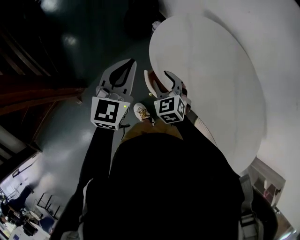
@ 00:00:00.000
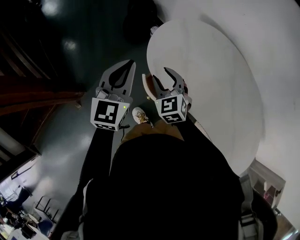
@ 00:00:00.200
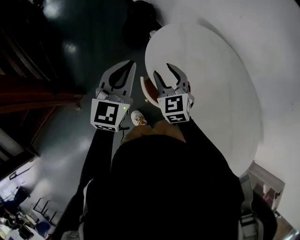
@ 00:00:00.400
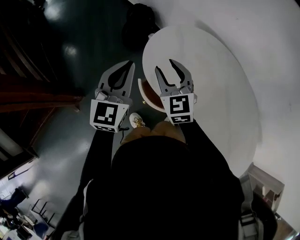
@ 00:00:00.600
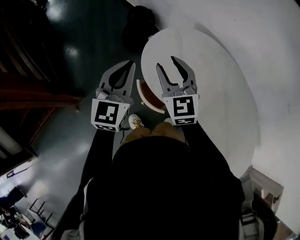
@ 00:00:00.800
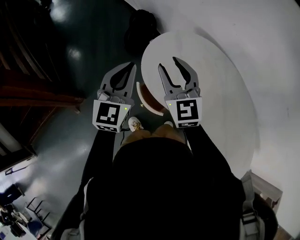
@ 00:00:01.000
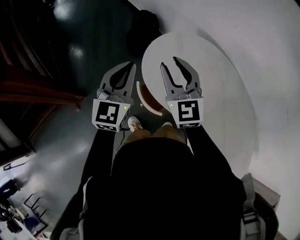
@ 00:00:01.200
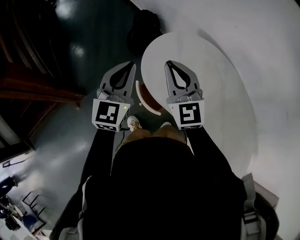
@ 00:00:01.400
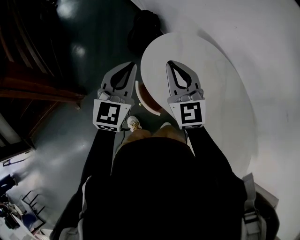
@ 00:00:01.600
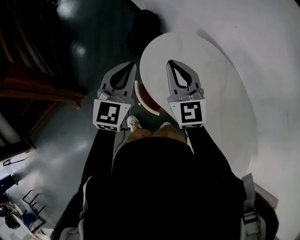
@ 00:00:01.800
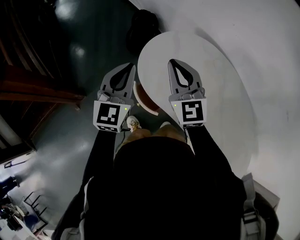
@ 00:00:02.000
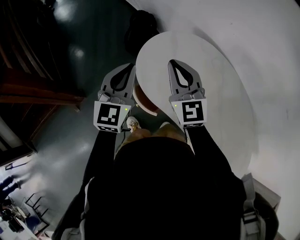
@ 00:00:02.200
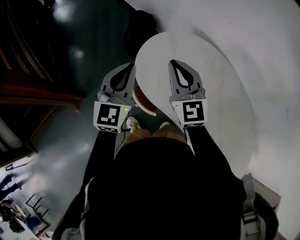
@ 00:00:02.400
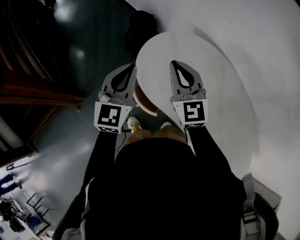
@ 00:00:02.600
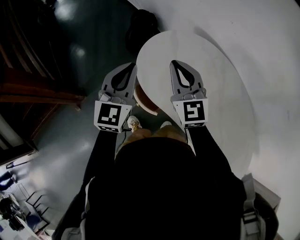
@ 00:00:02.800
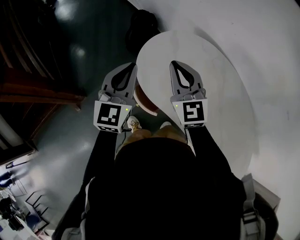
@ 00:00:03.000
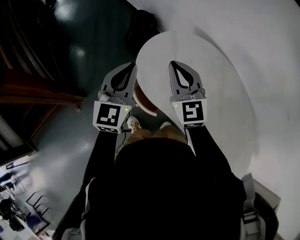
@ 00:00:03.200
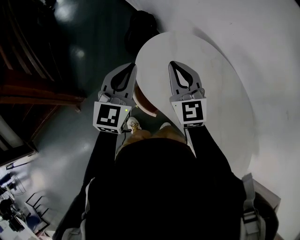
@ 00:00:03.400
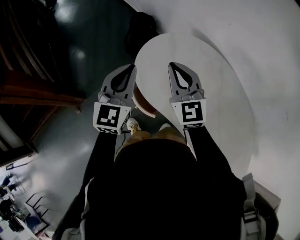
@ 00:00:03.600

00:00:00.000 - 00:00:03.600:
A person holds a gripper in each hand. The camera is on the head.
00:00:00.000 - 00:00:01.800: The left gripper is displaced upward by about 5 cm; the right gripper shifts about 20 cm upward, angles its fingers upward, by approximately 30 degrees, and closes.
00:00:01.800 - 00:00:03.600: The grippers make only small movements.

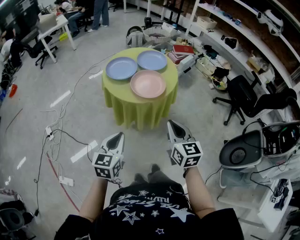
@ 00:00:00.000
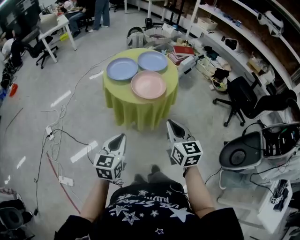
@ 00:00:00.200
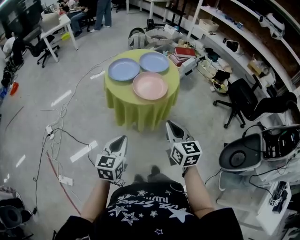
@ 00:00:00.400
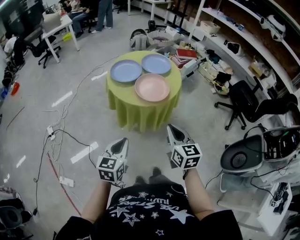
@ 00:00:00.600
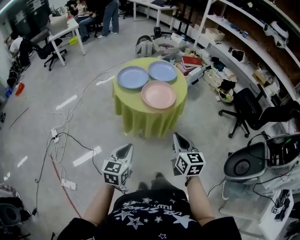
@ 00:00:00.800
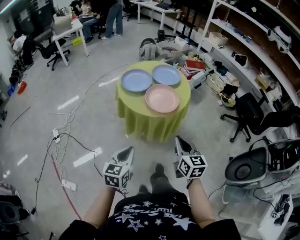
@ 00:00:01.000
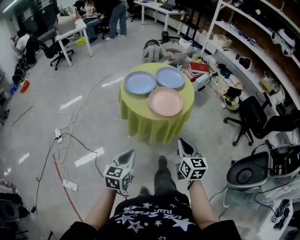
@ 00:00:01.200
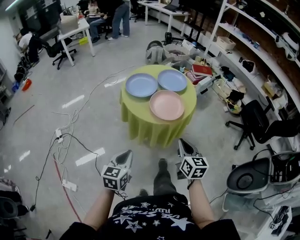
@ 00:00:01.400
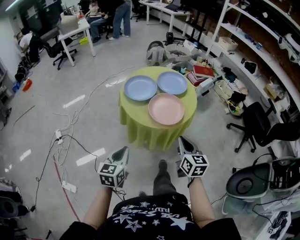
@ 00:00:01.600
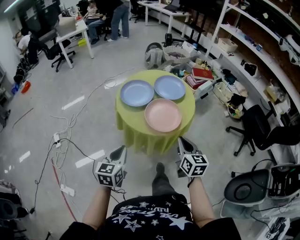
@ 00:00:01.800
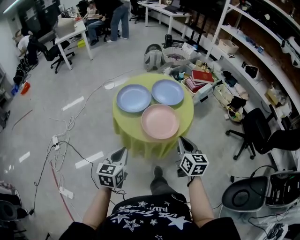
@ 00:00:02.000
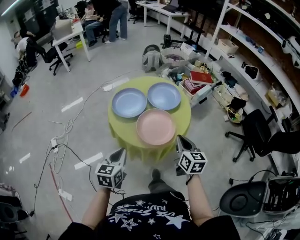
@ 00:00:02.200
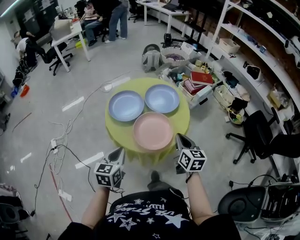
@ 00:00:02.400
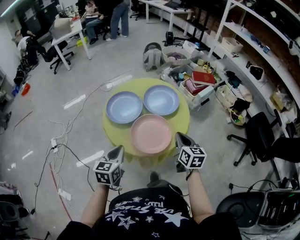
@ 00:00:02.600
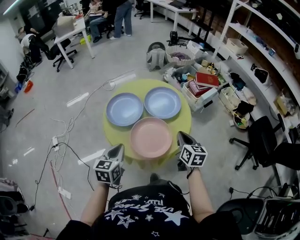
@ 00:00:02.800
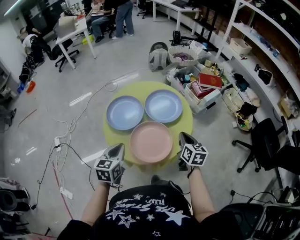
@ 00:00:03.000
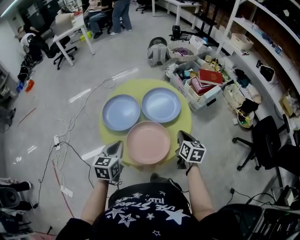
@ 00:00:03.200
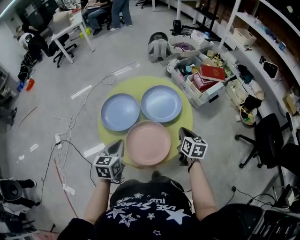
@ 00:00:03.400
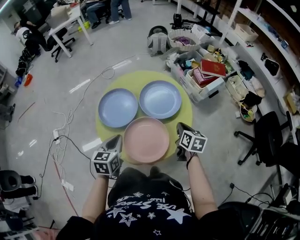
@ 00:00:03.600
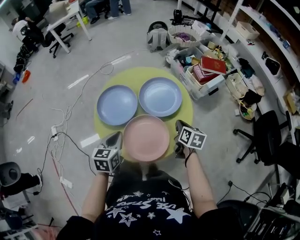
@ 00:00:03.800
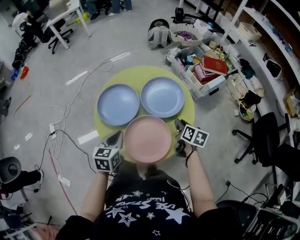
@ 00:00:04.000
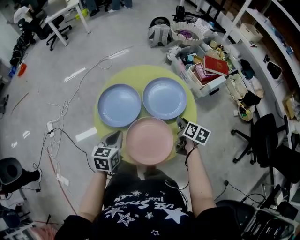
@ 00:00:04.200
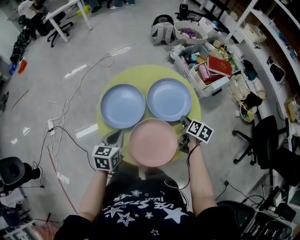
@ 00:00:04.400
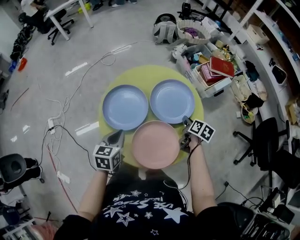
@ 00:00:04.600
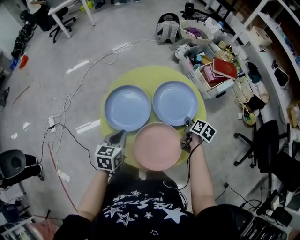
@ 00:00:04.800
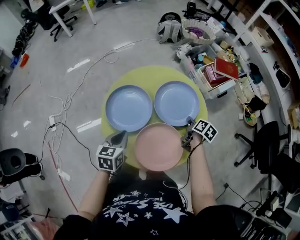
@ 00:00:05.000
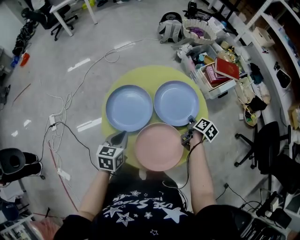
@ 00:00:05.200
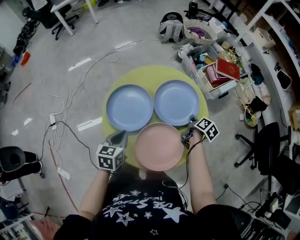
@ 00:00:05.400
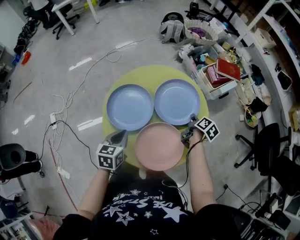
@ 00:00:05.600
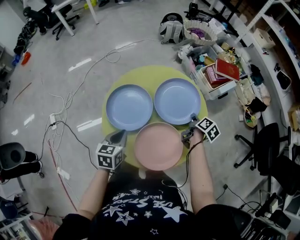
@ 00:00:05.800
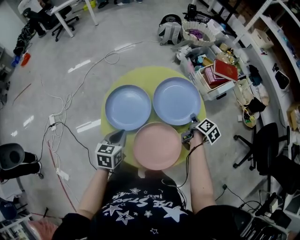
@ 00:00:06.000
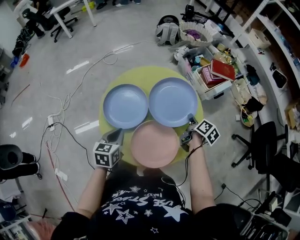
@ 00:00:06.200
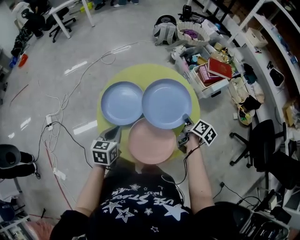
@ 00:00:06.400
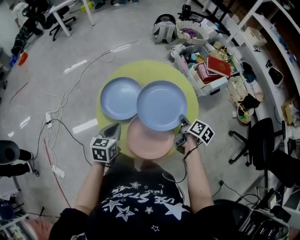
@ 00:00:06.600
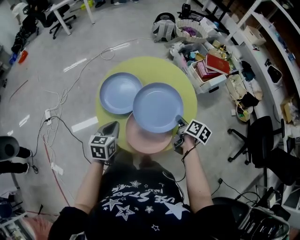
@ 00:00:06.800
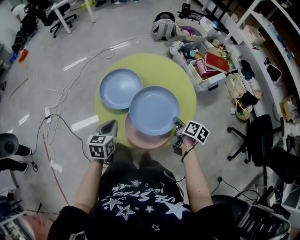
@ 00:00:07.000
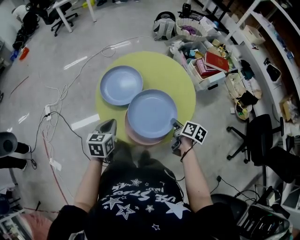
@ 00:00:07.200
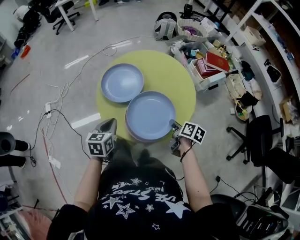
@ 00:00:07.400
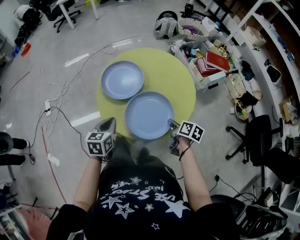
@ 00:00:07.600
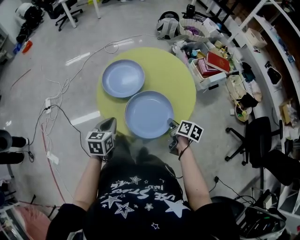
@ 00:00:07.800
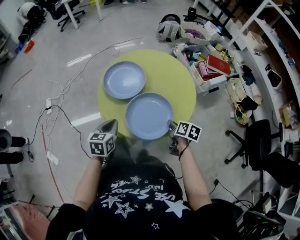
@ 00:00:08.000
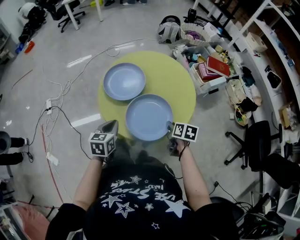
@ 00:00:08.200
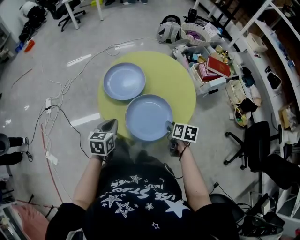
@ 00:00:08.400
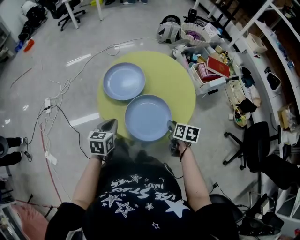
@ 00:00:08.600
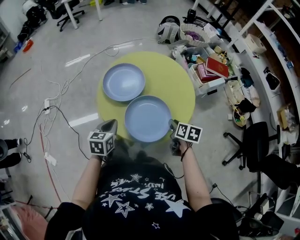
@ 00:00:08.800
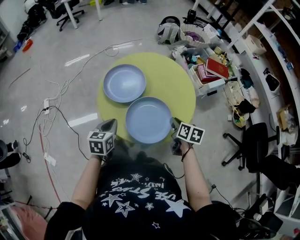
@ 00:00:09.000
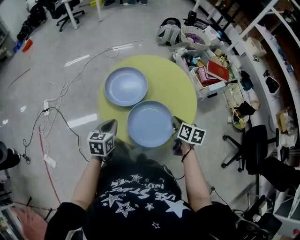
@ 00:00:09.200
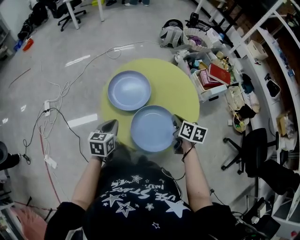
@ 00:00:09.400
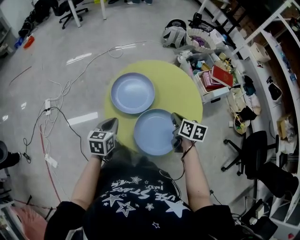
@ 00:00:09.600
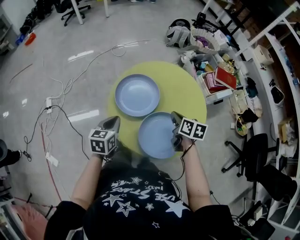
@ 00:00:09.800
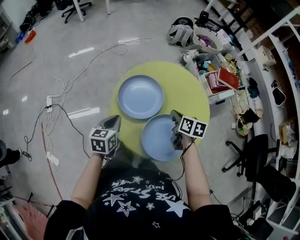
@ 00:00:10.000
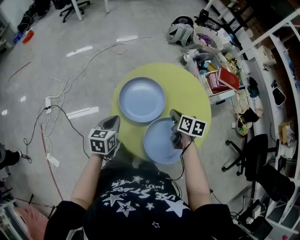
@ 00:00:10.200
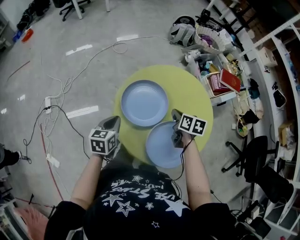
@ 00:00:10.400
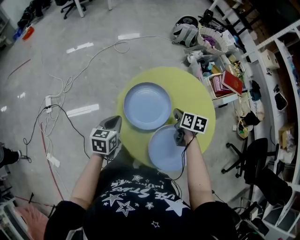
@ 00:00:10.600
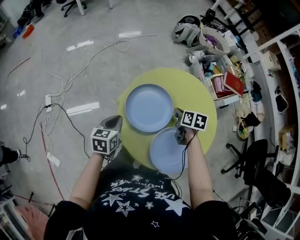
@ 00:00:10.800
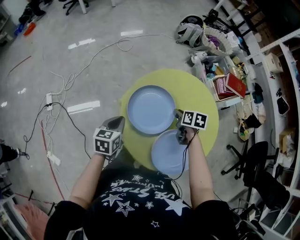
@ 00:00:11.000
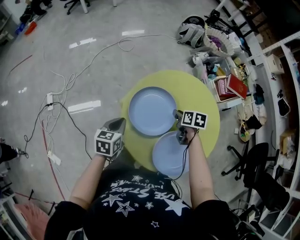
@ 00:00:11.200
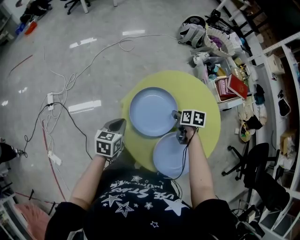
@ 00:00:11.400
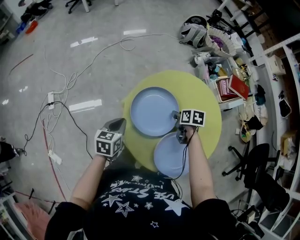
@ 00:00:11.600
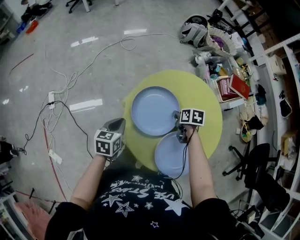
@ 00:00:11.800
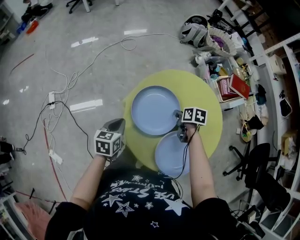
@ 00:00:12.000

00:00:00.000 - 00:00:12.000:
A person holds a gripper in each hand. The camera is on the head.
00:00:00.000 - 00:00:01.600: The left gripper shifts approximately 10 cm forward and to the left. The right gripper goes about 10 cm forward and downward.
00:00:01.600 - 00:00:03.000: The right gripper travels forward and to the right by some 30 cm, while the left gripper heads forward, covering roughly 25 cm.
00:00:03.000 - 00:00:04.400: Both grippers travel together forward and downward, about 15 cm. The right gripper turns by some 30 degrees, and opens up.
00:00:04.400 - 00:00:06.000: The right gripper closes up.
00:00:06.000 - 00:00:07.600: The left gripper travels backward by roughly 10 cm. The right gripper travels backward and to the left by roughly 20 cm, and swivels roughly 30 degrees.
00:00:09.000 - 00:00:10.400: Both grippers travel together forward and to the left, approximately 20 cm.
00:00:10.400 - 00:00:12.000: The right gripper goes some 5 cm downward.

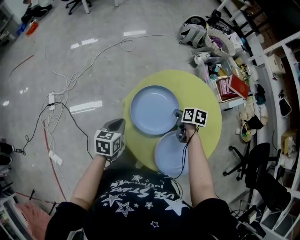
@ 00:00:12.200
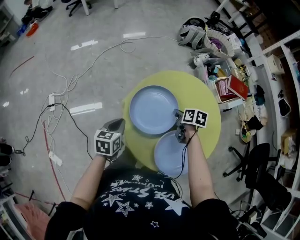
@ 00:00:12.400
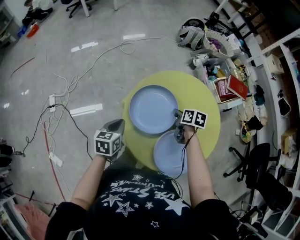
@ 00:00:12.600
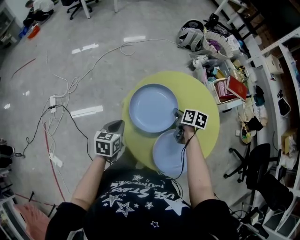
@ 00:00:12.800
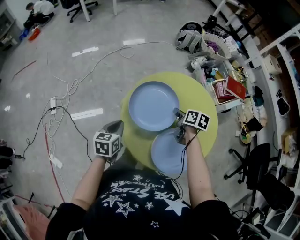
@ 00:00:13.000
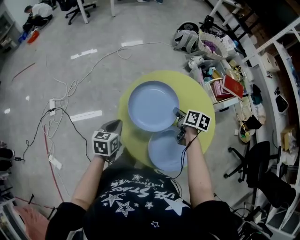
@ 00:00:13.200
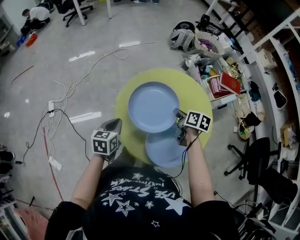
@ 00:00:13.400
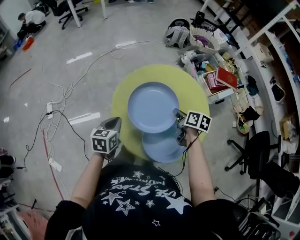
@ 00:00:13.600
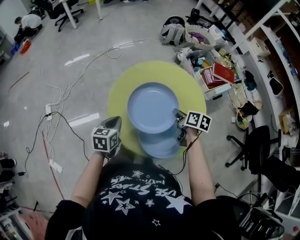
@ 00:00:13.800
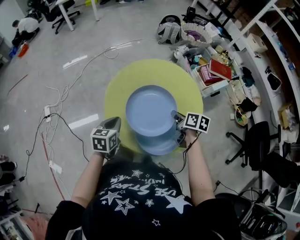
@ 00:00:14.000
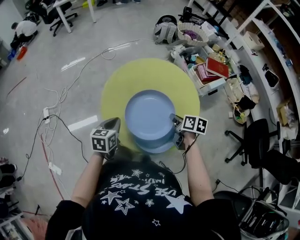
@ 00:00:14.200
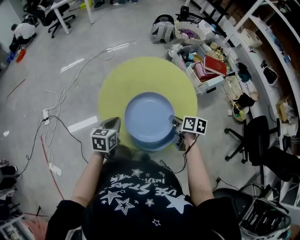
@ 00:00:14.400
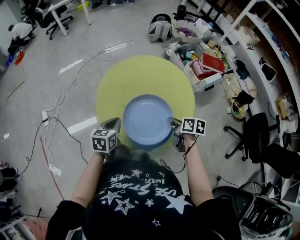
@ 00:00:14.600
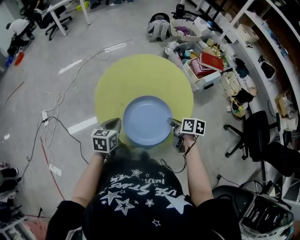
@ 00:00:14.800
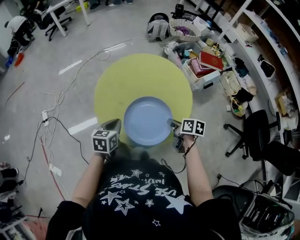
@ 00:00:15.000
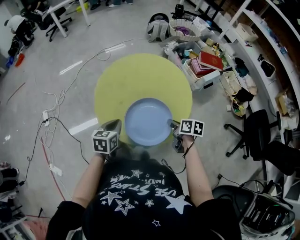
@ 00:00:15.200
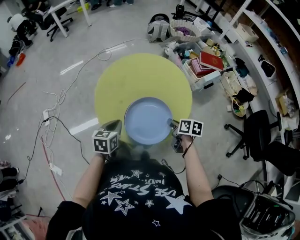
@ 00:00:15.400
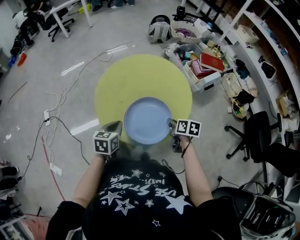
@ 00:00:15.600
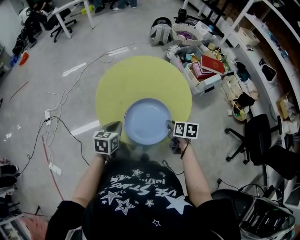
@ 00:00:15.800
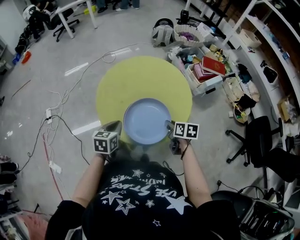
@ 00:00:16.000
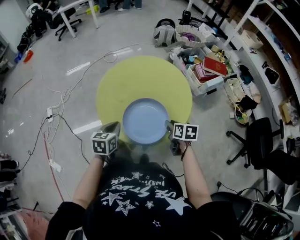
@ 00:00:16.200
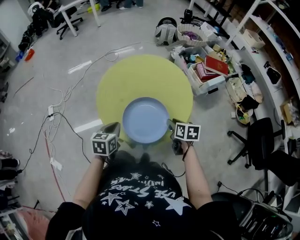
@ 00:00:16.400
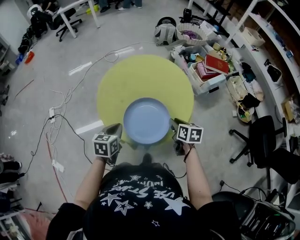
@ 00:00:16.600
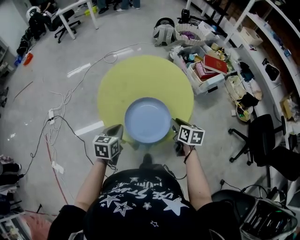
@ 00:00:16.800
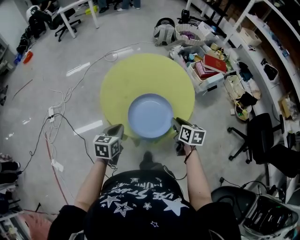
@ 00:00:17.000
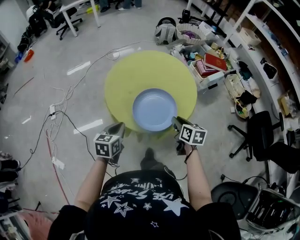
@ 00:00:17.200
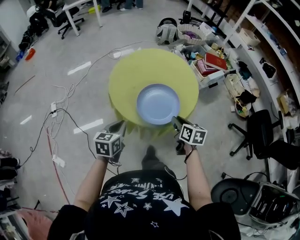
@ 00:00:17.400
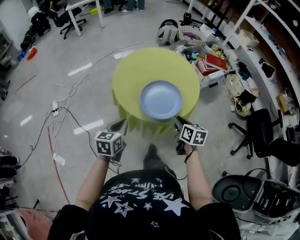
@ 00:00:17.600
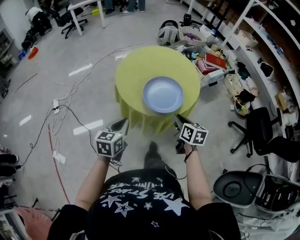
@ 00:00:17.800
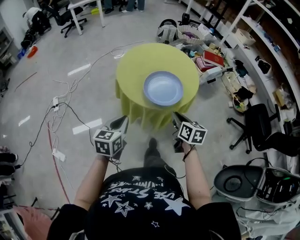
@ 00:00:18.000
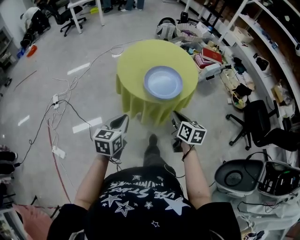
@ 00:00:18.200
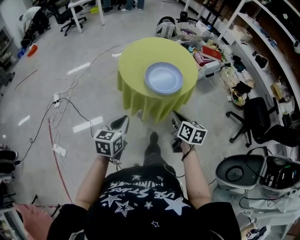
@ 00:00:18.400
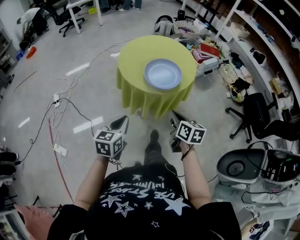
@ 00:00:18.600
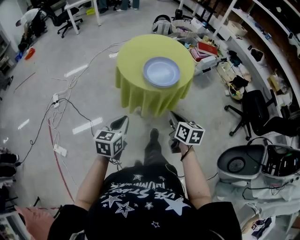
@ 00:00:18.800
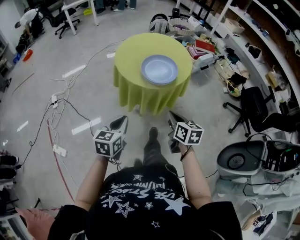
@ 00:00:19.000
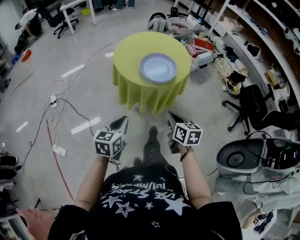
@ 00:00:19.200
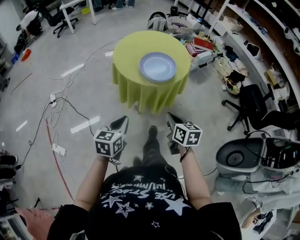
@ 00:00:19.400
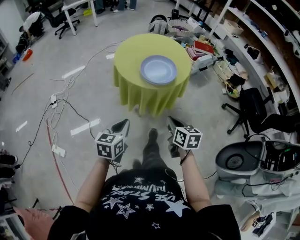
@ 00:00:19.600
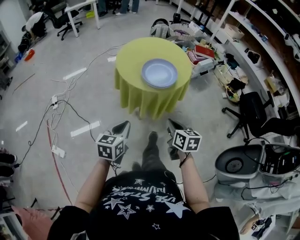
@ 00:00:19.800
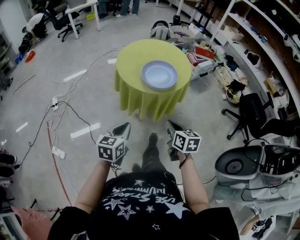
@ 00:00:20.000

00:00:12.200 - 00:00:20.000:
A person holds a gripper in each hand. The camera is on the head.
00:00:12.200 - 00:00:13.800: The right gripper travels backward, to the right and upward by approximately 15 cm; the left gripper goes some 10 cm to the right and backward.
00:00:13.800 - 00:00:15.400: Both grippers travel together backward and to the right, about 15 cm.
00:00:15.400 - 00:00:16.800: The grippers move only a little.
00:00:16.800 - 00:00:18.400: The right gripper moves backward and to the left, roughly 30 cm, and closes its fingers; the left gripper moves backward, approximately 25 cm.
00:00:18.400 - 00:00:20.000: Both grippers travel together backward, approximately 10 cm.
